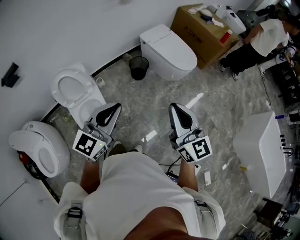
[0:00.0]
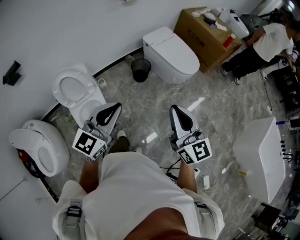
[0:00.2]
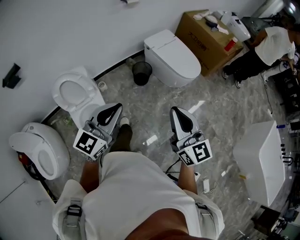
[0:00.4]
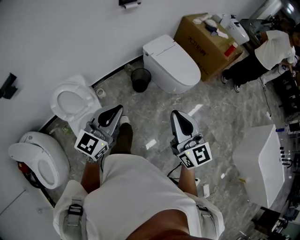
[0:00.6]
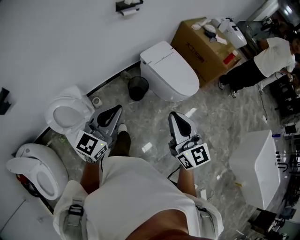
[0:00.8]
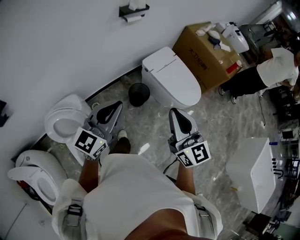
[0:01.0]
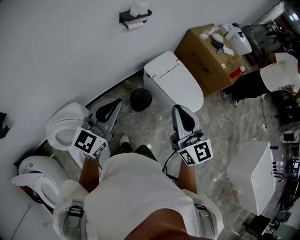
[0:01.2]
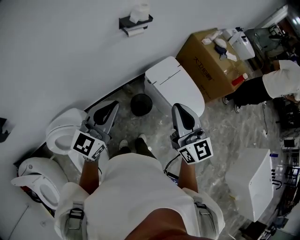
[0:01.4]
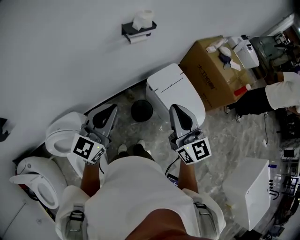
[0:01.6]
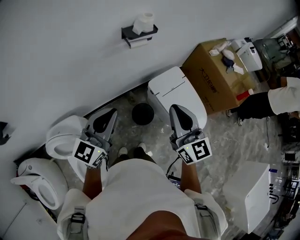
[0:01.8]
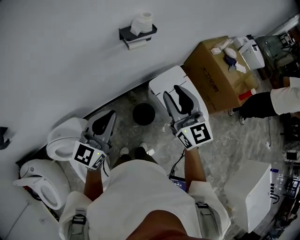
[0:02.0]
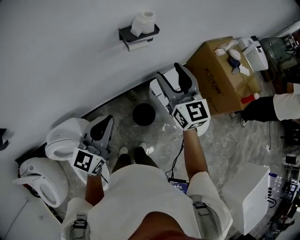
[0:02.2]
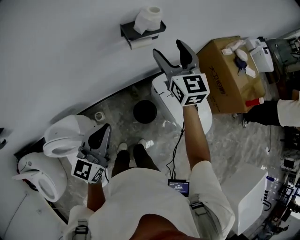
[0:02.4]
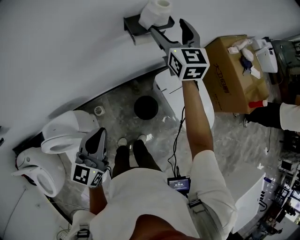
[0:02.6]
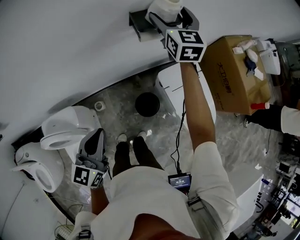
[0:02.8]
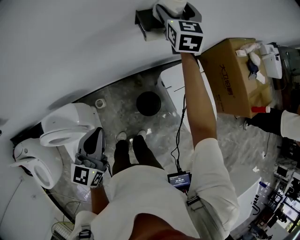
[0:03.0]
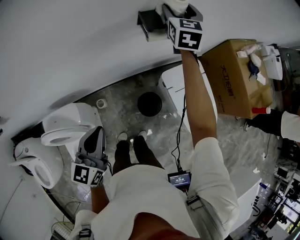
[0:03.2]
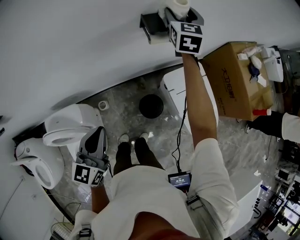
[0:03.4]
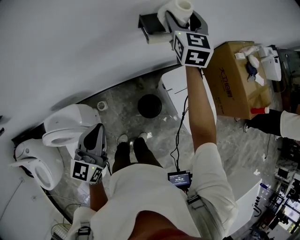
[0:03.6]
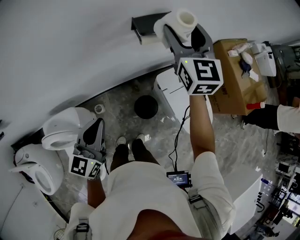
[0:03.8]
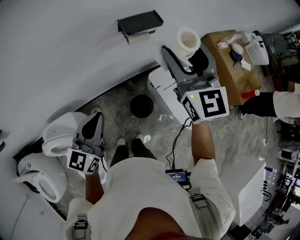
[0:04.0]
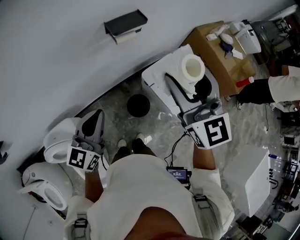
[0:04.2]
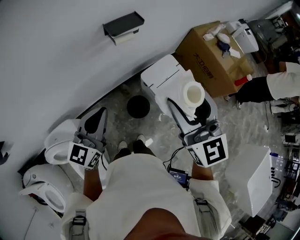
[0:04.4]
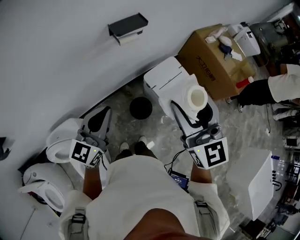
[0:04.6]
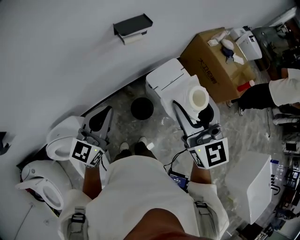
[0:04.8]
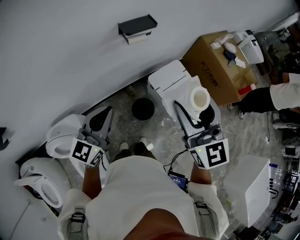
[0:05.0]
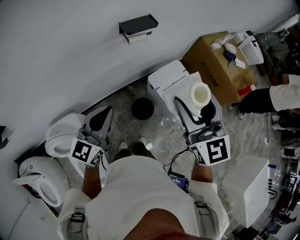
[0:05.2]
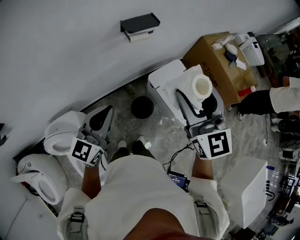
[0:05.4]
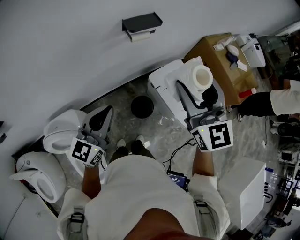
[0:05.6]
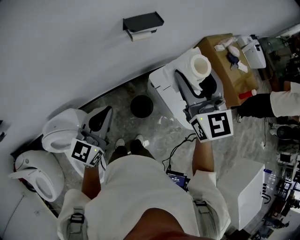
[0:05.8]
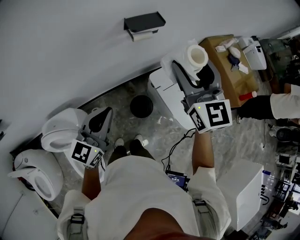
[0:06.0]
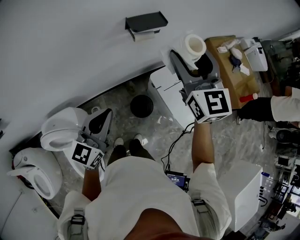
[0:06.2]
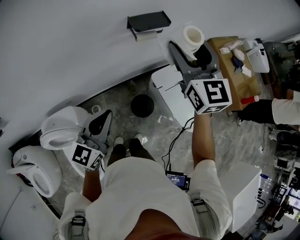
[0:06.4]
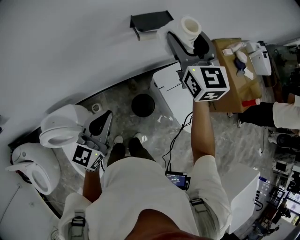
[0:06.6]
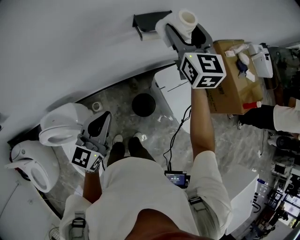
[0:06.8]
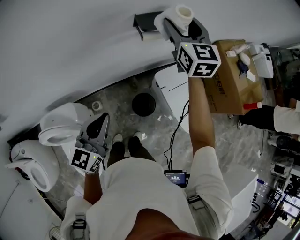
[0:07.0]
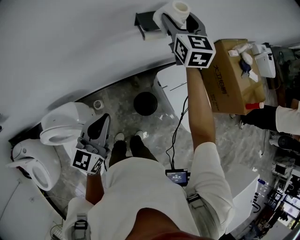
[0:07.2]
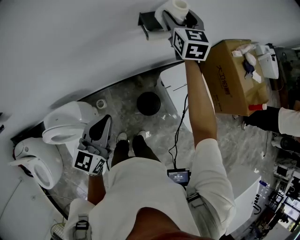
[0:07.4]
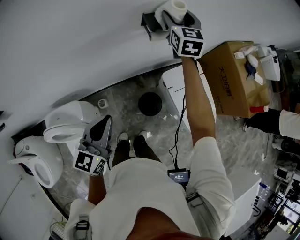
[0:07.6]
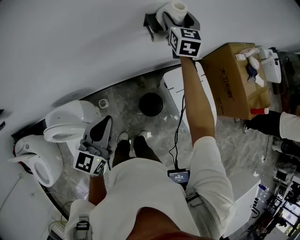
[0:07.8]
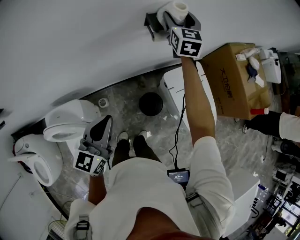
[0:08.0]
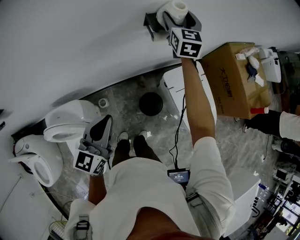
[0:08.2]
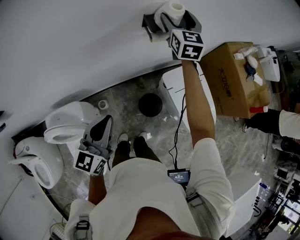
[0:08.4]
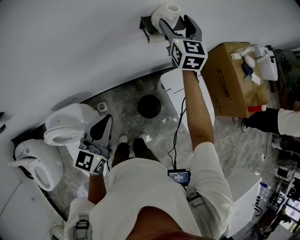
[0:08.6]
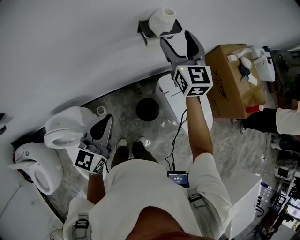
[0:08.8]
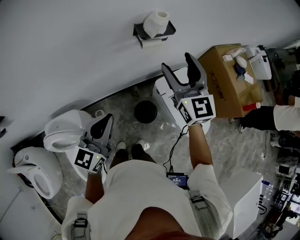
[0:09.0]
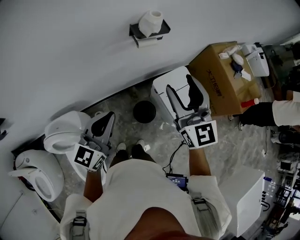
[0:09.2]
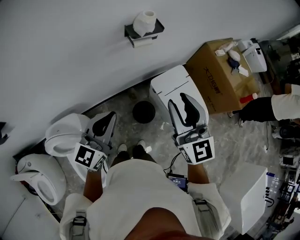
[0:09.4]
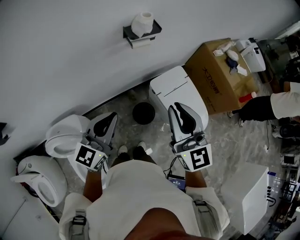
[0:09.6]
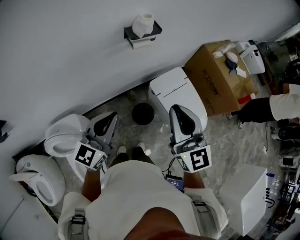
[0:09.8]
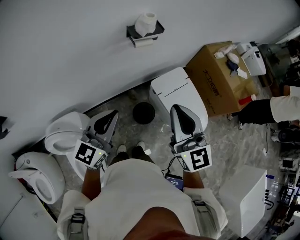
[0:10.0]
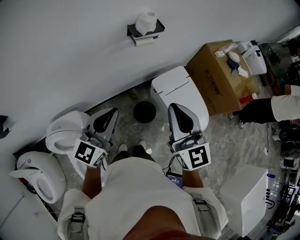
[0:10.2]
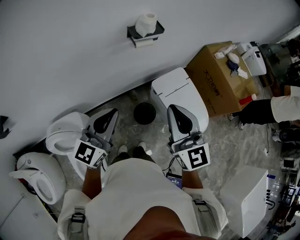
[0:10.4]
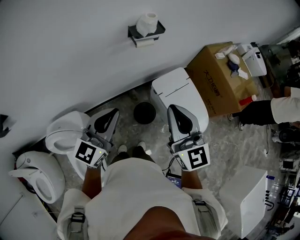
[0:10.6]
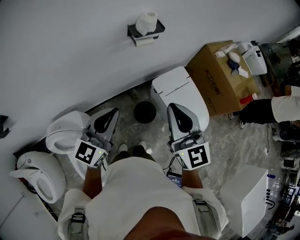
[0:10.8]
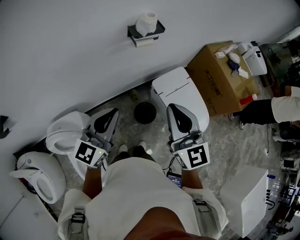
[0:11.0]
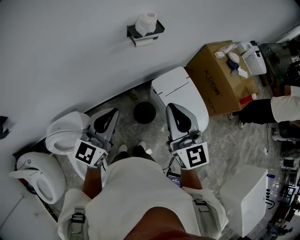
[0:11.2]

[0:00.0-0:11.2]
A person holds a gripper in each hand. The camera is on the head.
0:00.0 to 0:01.6: Both grippers are carried forward, roughly 60 cm.
0:01.6 to 0:03.2: The left gripper is displaced downward, forward and to the left by about 15 cm, and changes its angle by roughly 30 degrees, while the right gripper travels forward by about 50 cm, rotates approximately 20 degrees, and opens.
0:03.2 to 0:04.8: The left gripper moves upward and to the right, some 10 cm, and turns by some 30 degrees; the right gripper goes some 50 cm backward.
0:04.8 to 0:06.4: The left gripper shifts by roughly 5 cm. The right gripper heads forward, covering some 20 cm.
0:06.4 to 0:08.0: The left gripper changes place by some 5 cm, while the right gripper heads forward and downward, covering approximately 25 cm.
0:08.0 to 0:09.6: The left gripper heads upward and to the right, covering some 10 cm. Meanwhile the right gripper travels backward by some 40 cm, and closes up.
0:09.6 to 0:11.2: There are only small adjustments of the grippers.

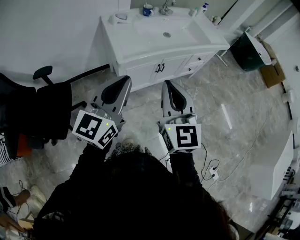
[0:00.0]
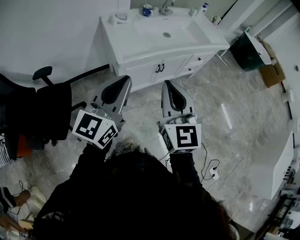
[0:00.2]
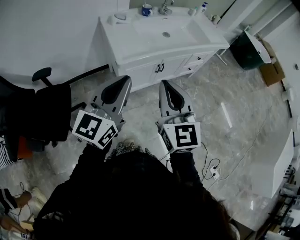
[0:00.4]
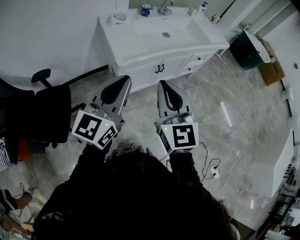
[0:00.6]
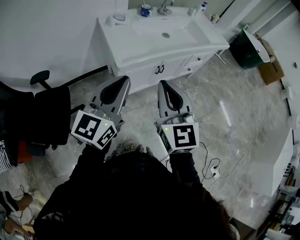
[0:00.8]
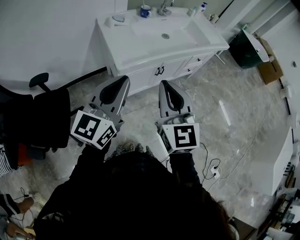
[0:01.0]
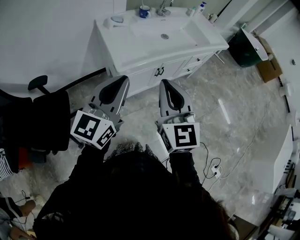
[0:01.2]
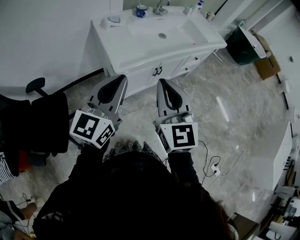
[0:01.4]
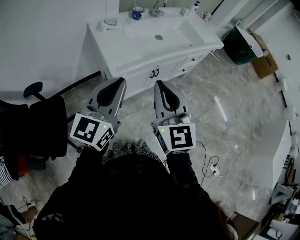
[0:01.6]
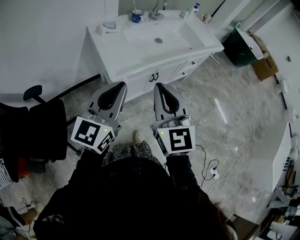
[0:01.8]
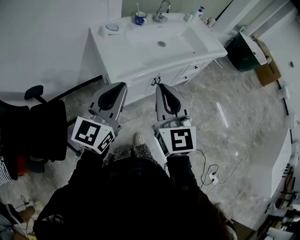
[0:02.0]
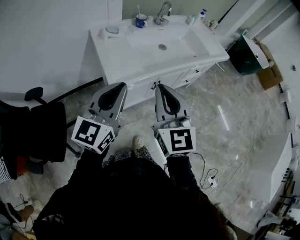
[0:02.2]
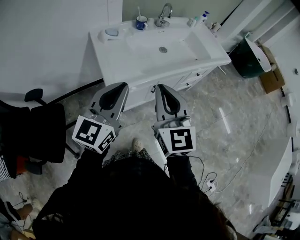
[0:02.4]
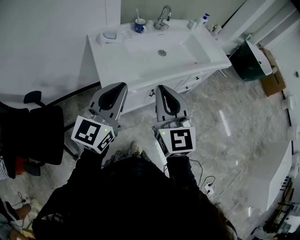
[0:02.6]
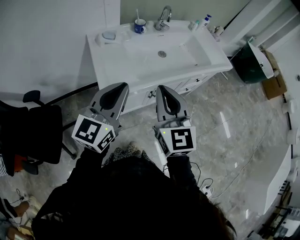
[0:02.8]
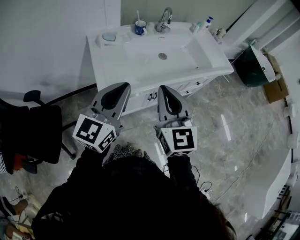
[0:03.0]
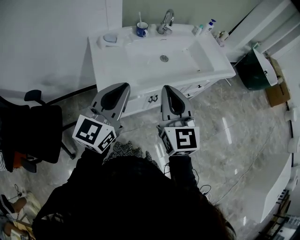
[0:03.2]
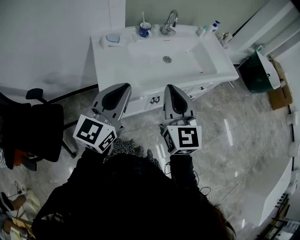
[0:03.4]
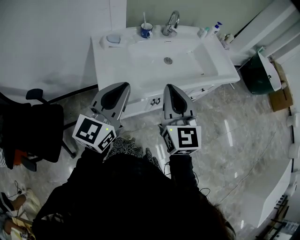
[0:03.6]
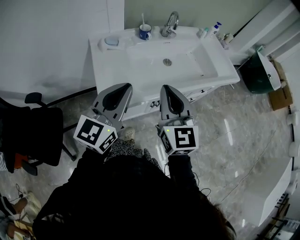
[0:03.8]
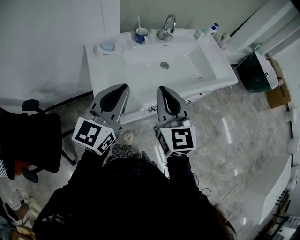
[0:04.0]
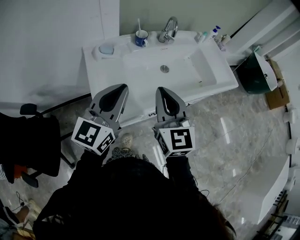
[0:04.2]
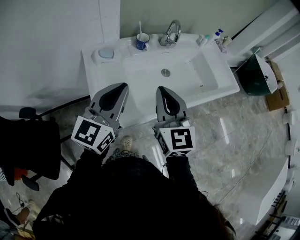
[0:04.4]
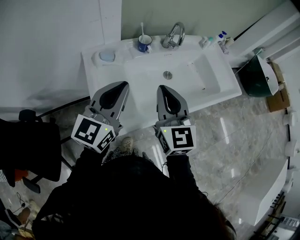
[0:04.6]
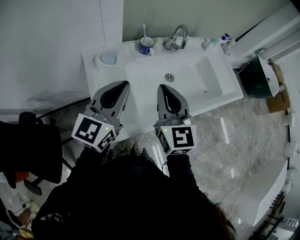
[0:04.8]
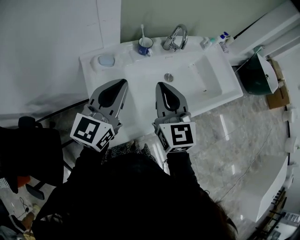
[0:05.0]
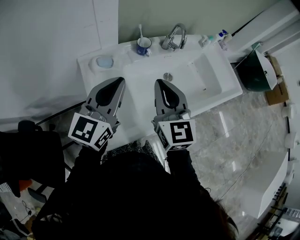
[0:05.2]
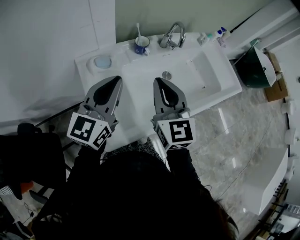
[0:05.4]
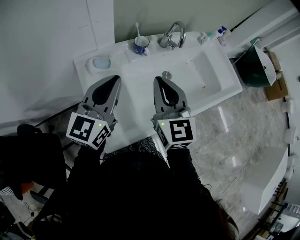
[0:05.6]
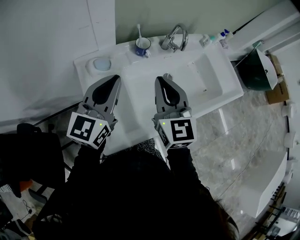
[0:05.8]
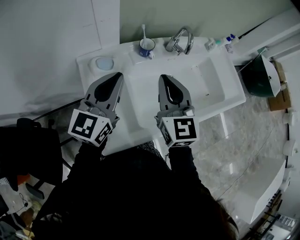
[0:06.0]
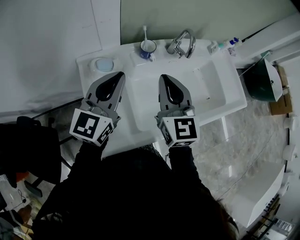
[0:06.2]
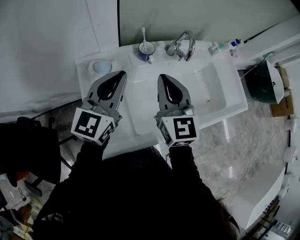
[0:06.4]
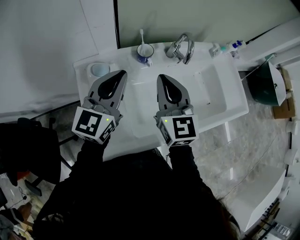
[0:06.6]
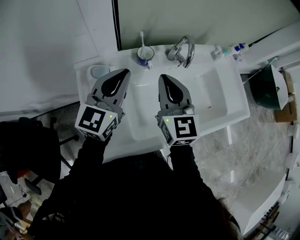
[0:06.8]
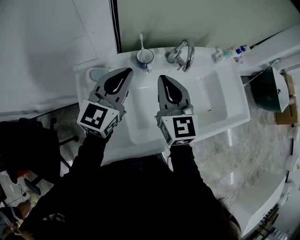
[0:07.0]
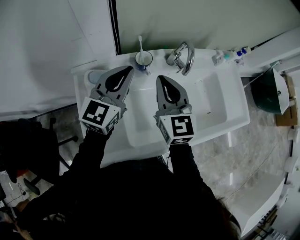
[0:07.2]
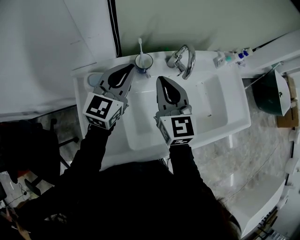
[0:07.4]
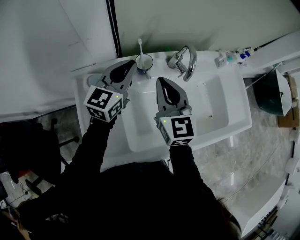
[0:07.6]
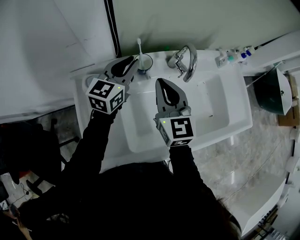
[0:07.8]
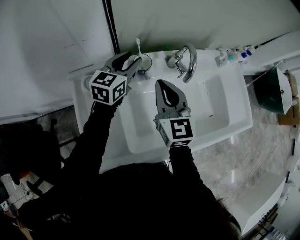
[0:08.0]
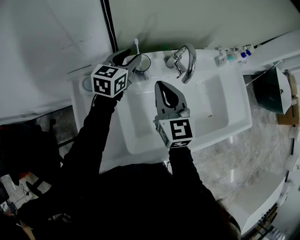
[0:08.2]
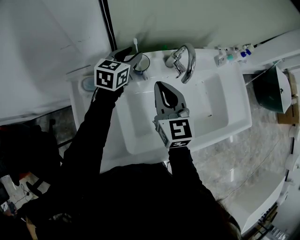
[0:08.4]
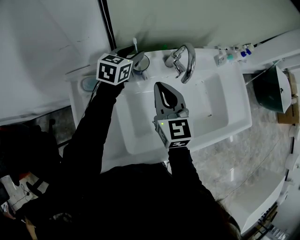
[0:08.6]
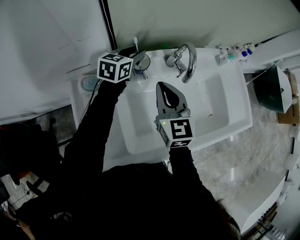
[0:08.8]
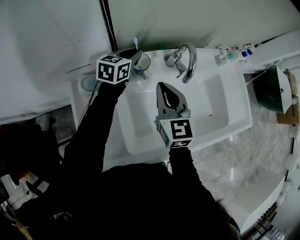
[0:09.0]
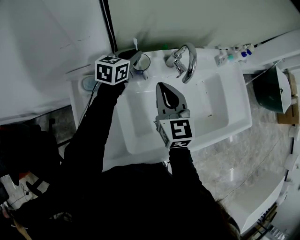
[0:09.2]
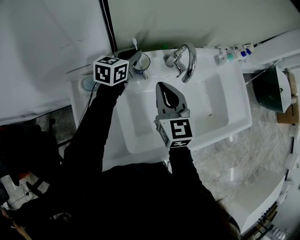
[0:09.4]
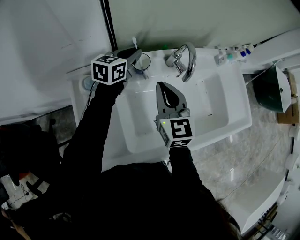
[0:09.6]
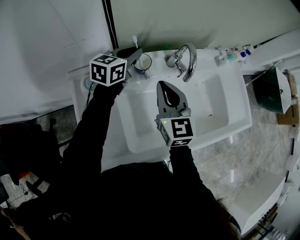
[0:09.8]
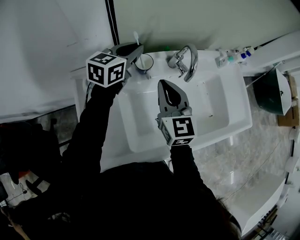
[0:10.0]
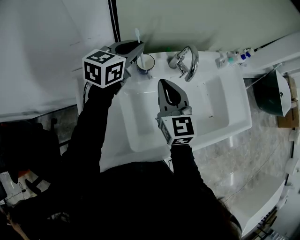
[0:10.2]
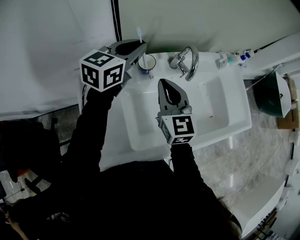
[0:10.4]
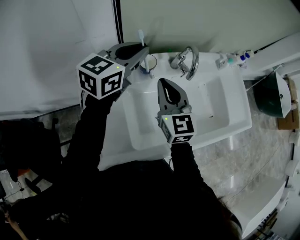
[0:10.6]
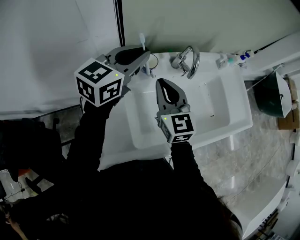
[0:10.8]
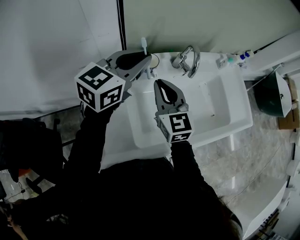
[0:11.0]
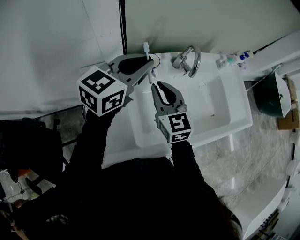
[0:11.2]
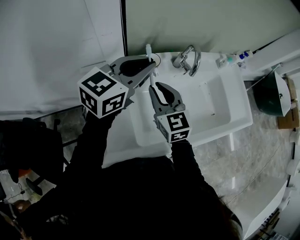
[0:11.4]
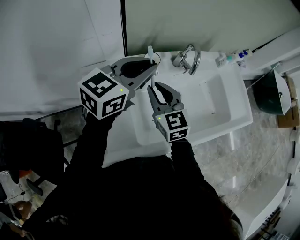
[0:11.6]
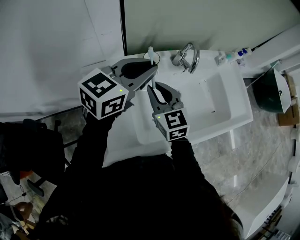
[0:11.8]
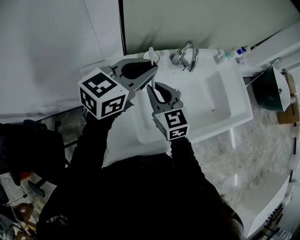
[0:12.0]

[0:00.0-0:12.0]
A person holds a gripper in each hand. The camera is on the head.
0:00.0 to 0:01.6: Both grippers travel together forward, about 5 cm.
0:01.6 to 0:03.0: Both grippers move forward and to the right, roughly 15 cm.
0:03.0 to 0:04.4: The two grippers go roughly 15 cm forward.
0:04.4 to 0:06.0: Both grippers move forward, roughly 15 cm.
0:06.0 to 0:07.6: Both grippers travel together forward, approximately 15 cm.
0:07.6 to 0:09.0: The left gripper goes some 15 cm forward and downward, rotates roughly 20 degrees, and opens and closes again.
0:09.0 to 0:10.4: The left gripper is displaced upward and backward by roughly 15 cm.
0:10.4 to 0:12.0: The left gripper shifts approximately 15 cm backward. The right gripper goes some 5 cm backward.

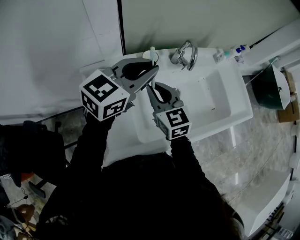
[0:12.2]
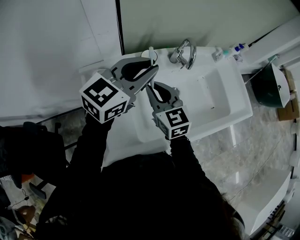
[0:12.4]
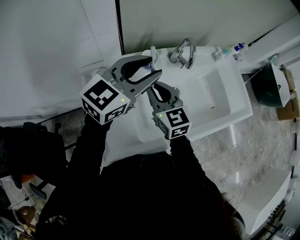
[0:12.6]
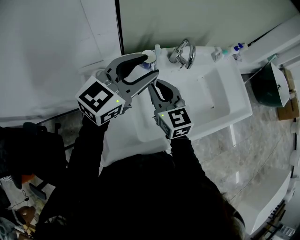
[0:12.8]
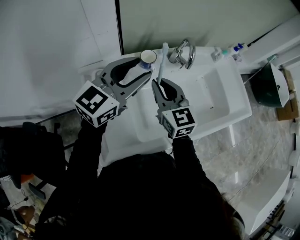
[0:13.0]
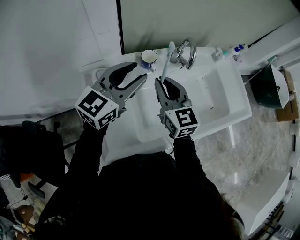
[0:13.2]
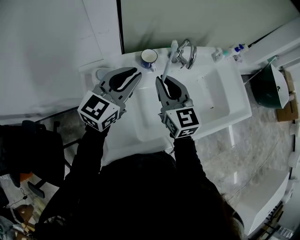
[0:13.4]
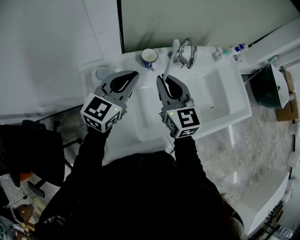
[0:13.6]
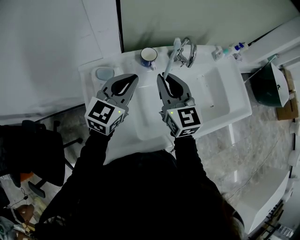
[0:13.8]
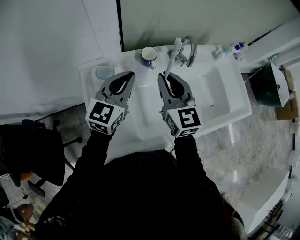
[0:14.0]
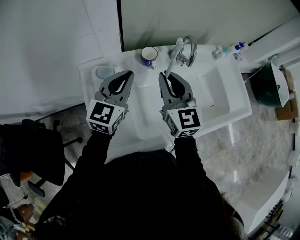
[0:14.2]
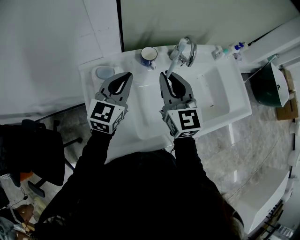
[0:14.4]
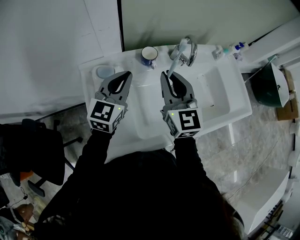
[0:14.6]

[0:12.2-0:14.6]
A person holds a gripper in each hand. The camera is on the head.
0:12.2 to 0:13.4: The left gripper shifts by roughly 5 cm, and opens, then closes again, while the right gripper shifts by roughly 5 cm.
0:13.4 to 0:14.6: The left gripper moves about 5 cm.
